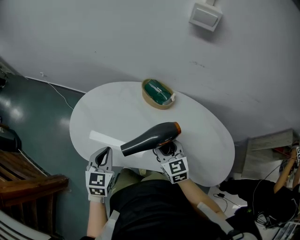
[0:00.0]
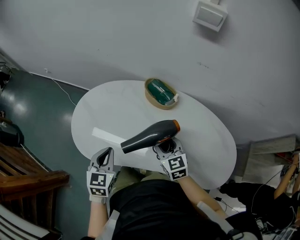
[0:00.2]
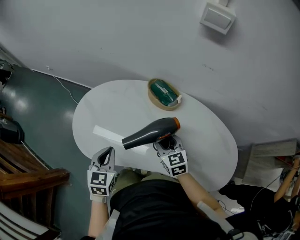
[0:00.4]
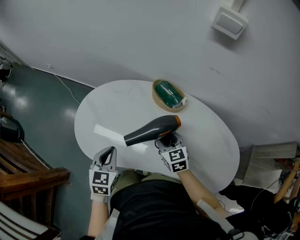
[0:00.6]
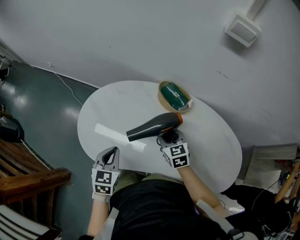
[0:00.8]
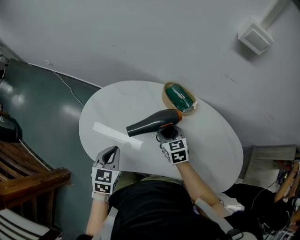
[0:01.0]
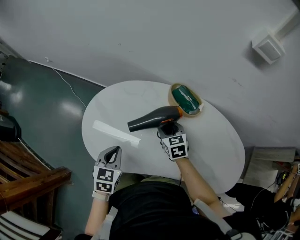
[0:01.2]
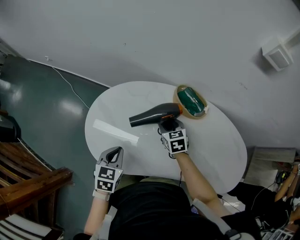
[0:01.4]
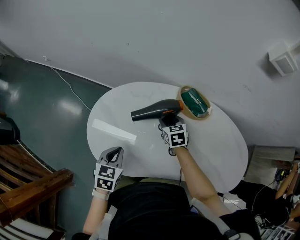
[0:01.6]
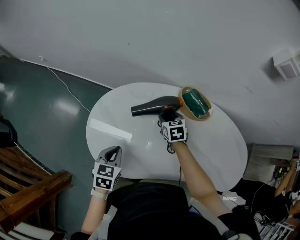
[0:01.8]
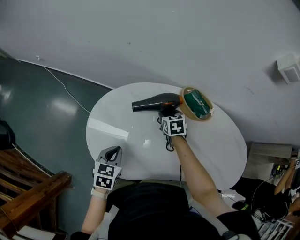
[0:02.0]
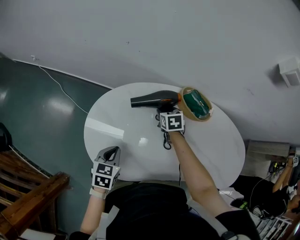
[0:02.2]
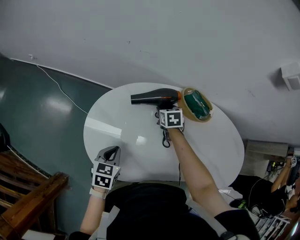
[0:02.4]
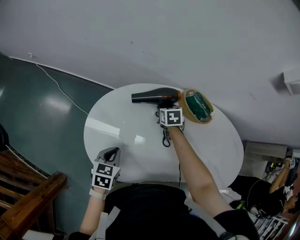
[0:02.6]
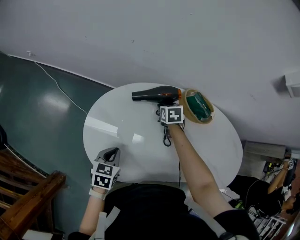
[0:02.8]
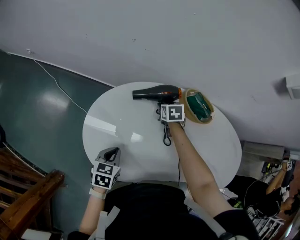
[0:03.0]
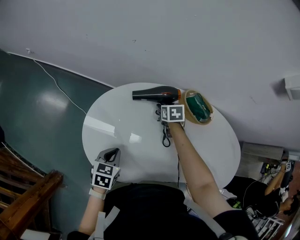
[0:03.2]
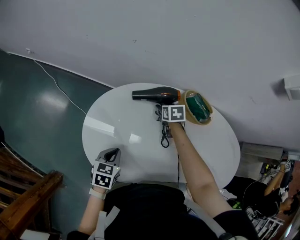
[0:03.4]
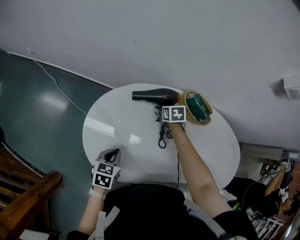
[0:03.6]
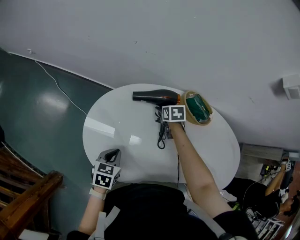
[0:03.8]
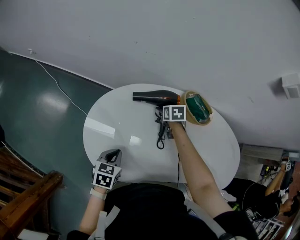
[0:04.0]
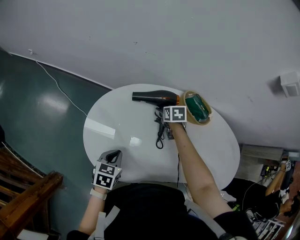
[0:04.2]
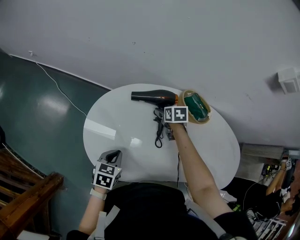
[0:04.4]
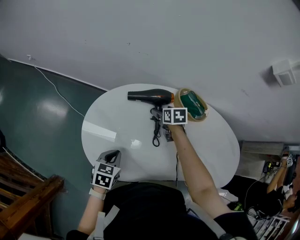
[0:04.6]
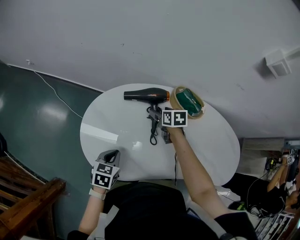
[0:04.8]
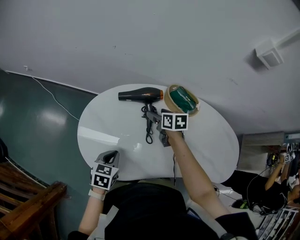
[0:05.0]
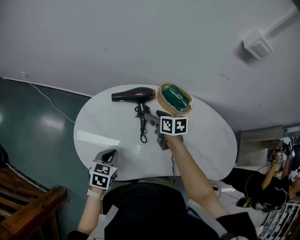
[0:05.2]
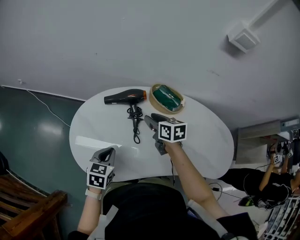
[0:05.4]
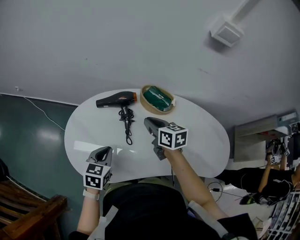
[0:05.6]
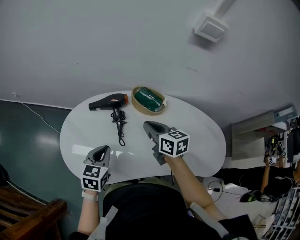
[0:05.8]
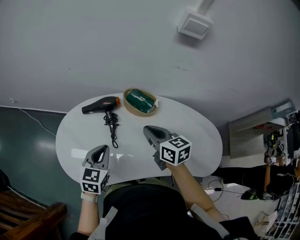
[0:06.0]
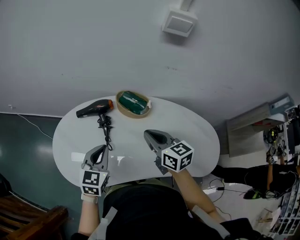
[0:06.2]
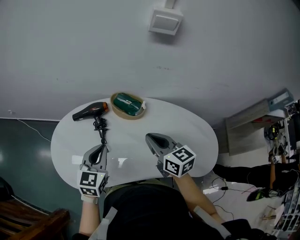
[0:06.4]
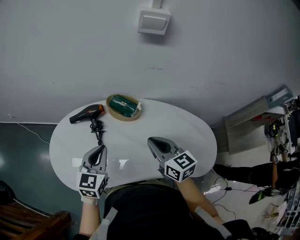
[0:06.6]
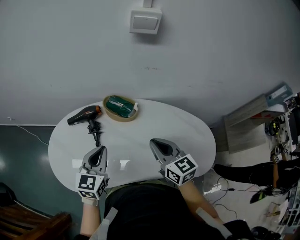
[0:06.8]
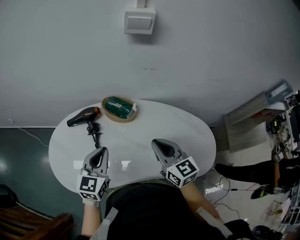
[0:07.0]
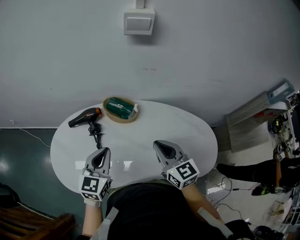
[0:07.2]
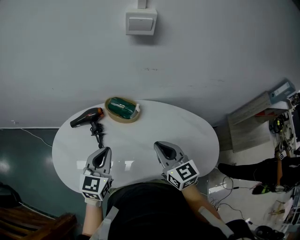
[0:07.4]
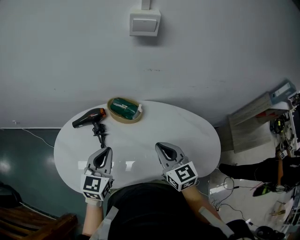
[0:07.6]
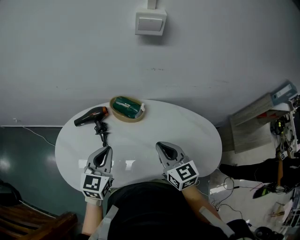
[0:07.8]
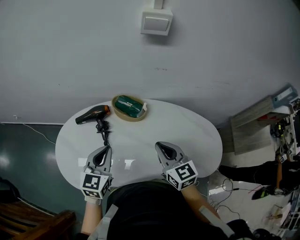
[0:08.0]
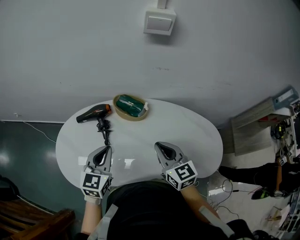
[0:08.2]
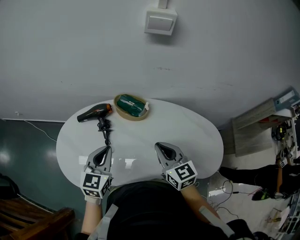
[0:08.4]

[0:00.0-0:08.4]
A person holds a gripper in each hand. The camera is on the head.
0:00.0 to 0:01.4: The right gripper is displaced forward, to the left and downward by roughly 25 cm, and turns by roughly 20 degrees. The left gripper shifts approximately 15 cm to the left, forward and downward.
0:01.4 to 0:02.8: The left gripper is displaced downward and to the left by about 10 cm, while the right gripper moves forward, downward and to the left, approximately 15 cm, and turns by some 20 degrees.
0:02.8 to 0:04.2: The right gripper opens up.
0:04.2 to 0:05.6: The left gripper shifts some 15 cm to the right and upward, while the right gripper travels upward, backward and to the right by approximately 25 cm, angles its fingers upward, by some 30 degrees, and closes its fingers.
0:05.6 to 0:07.0: The left gripper shifts some 20 cm to the right and upward, and swivels about 20 degrees, while the right gripper heads to the right, backward and upward, covering approximately 25 cm, and turns by roughly 30 degrees.
0:07.0 to 0:08.4: The grippers move only a little.

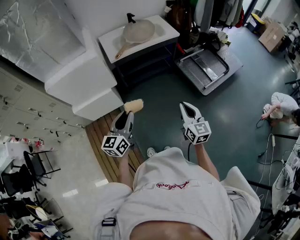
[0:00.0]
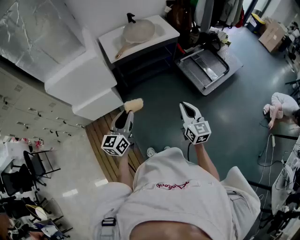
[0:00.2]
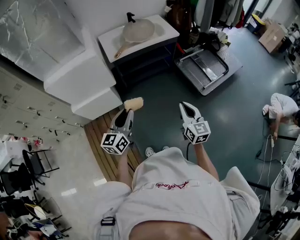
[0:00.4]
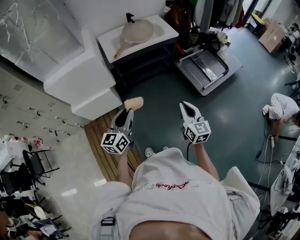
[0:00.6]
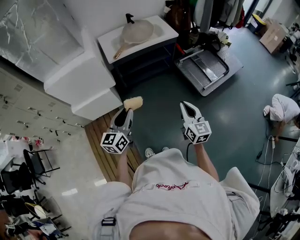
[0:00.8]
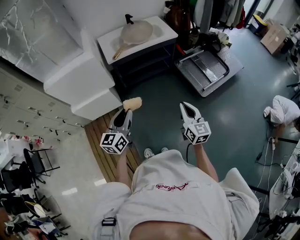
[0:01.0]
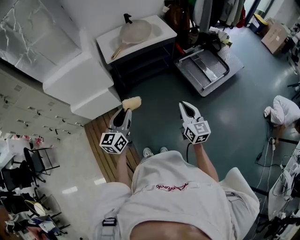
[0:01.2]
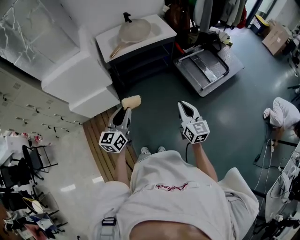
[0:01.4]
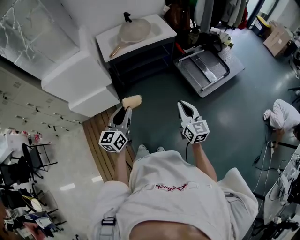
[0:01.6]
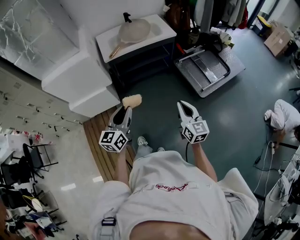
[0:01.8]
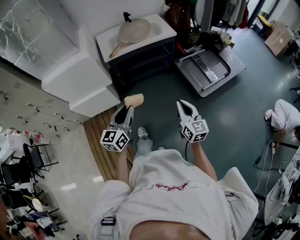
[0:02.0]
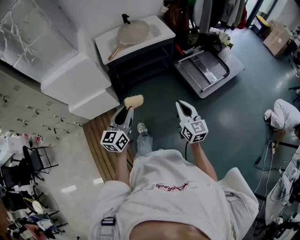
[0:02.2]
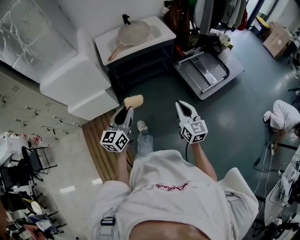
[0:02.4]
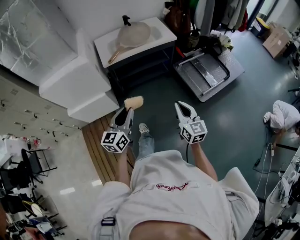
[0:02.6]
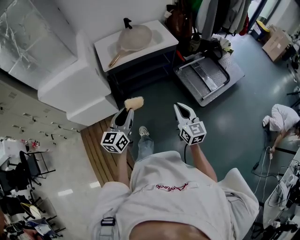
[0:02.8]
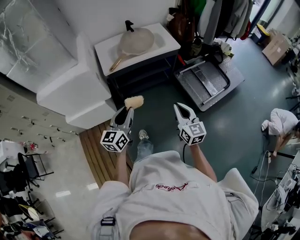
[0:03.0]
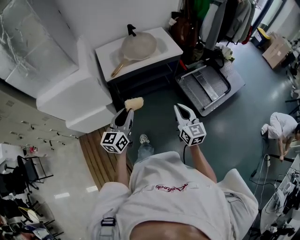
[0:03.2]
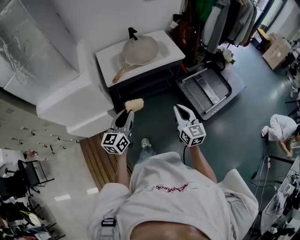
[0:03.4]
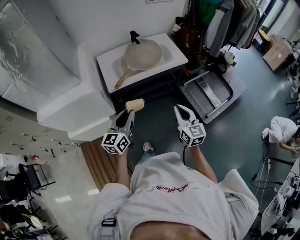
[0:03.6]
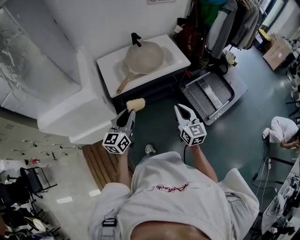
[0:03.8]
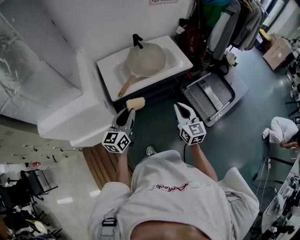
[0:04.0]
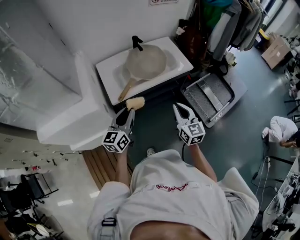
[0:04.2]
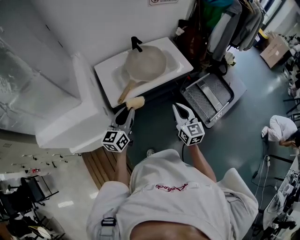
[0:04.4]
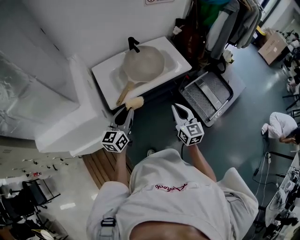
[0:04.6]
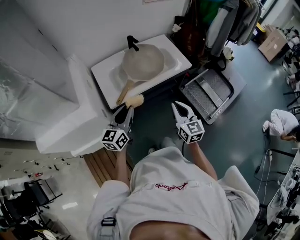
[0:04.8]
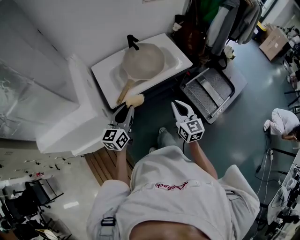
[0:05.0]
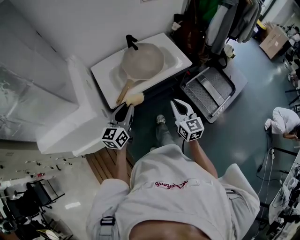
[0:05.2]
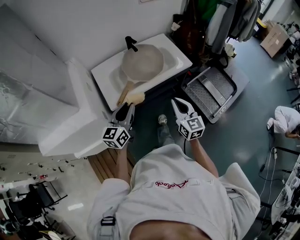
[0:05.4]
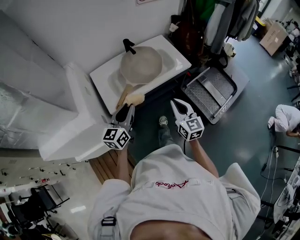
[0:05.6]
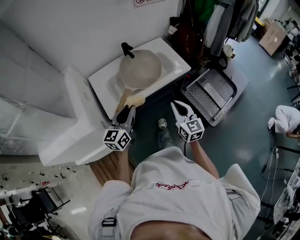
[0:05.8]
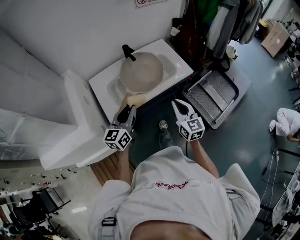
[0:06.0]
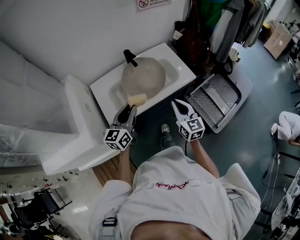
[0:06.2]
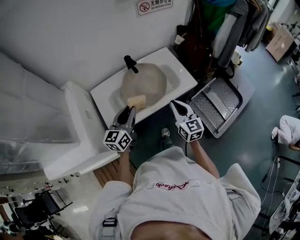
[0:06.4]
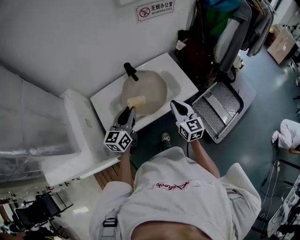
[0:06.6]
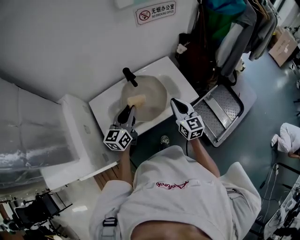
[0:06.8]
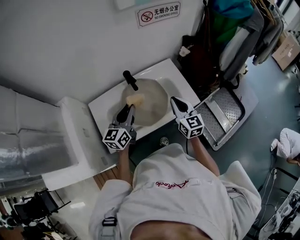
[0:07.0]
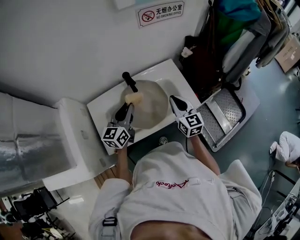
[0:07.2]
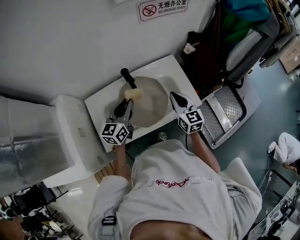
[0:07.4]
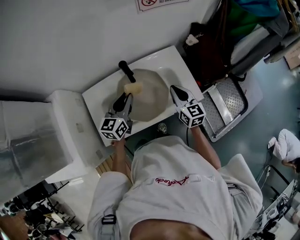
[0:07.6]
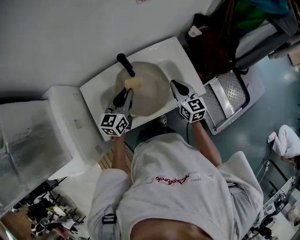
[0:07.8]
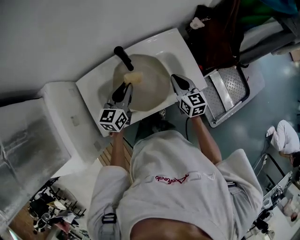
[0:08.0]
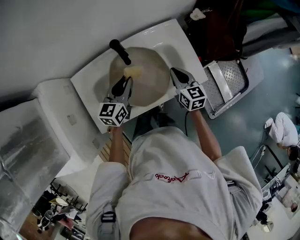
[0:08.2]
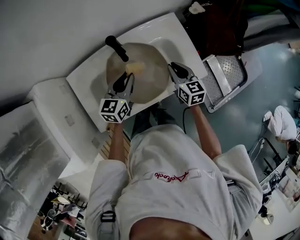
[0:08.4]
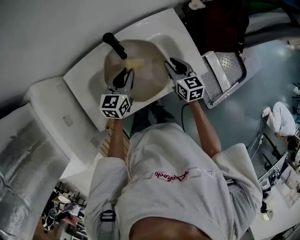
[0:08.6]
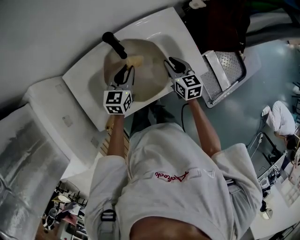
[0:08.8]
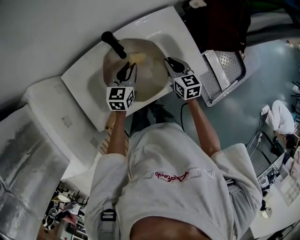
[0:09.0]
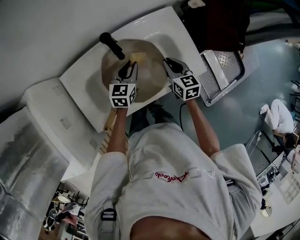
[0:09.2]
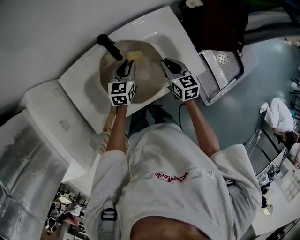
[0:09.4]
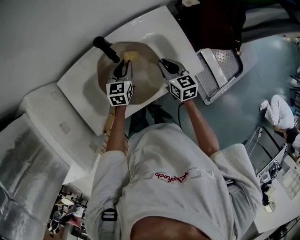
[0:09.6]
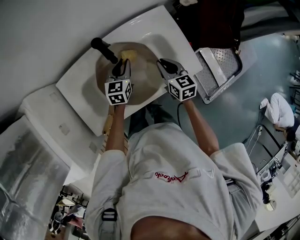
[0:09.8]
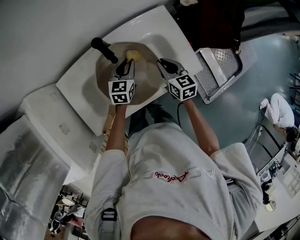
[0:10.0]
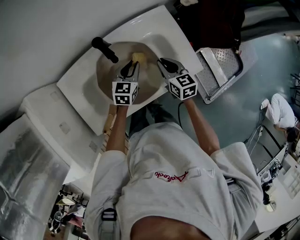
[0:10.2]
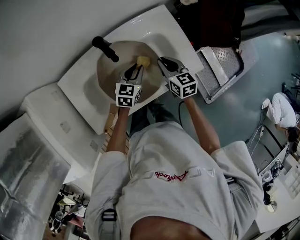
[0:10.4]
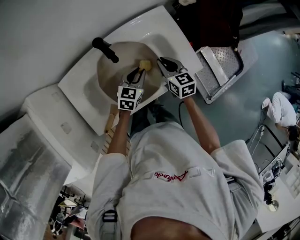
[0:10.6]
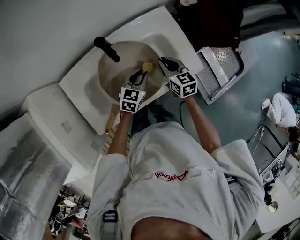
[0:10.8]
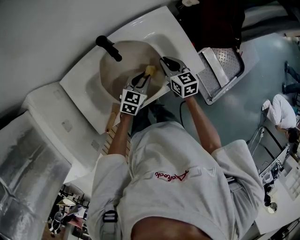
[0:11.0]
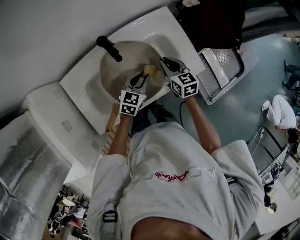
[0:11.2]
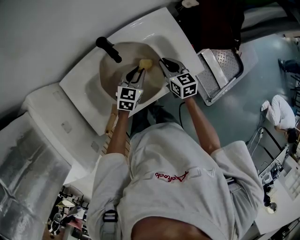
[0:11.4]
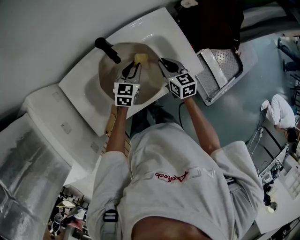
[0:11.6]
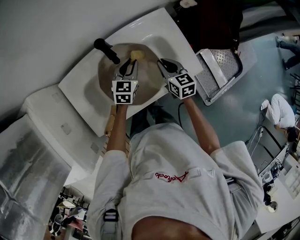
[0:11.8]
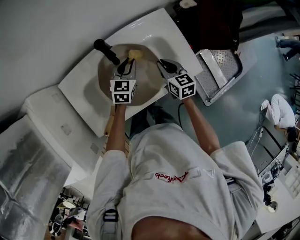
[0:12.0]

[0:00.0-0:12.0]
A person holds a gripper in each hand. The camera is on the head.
0:00.0 to 0:01.6: Both grippers travel together to the right, about 10 cm.
0:01.6 to 0:03.0: The grippers both shift forward by some 15 cm.
0:03.0 to 0:04.4: The right gripper heads forward and to the left, covering some 30 cm, while the left gripper heads forward, covering about 30 cm.
0:04.4 to 0:06.0: Both grippers move forward, about 10 cm.
0:06.0 to 0:07.6: Both grippers travel together forward, approximately 30 cm.
0:07.6 to 0:09.0: The two grippers go some 15 cm downward.
0:09.0 to 0:10.4: The left gripper travels to the right by roughly 5 cm.
0:10.4 to 0:12.0: The left gripper ends up approximately 5 cm from where it was.

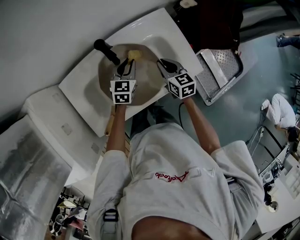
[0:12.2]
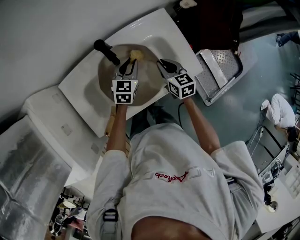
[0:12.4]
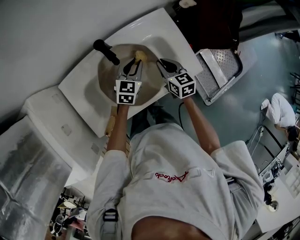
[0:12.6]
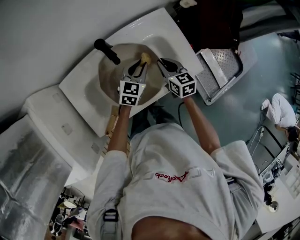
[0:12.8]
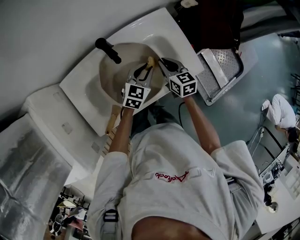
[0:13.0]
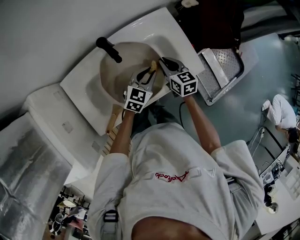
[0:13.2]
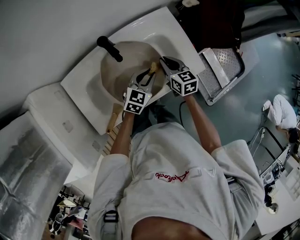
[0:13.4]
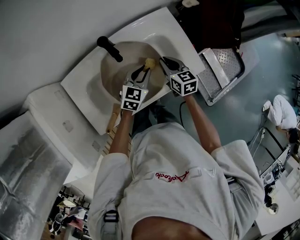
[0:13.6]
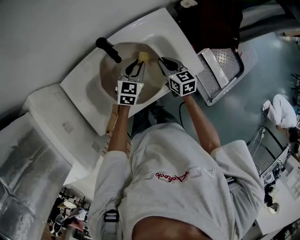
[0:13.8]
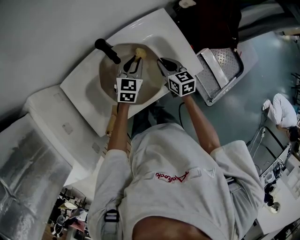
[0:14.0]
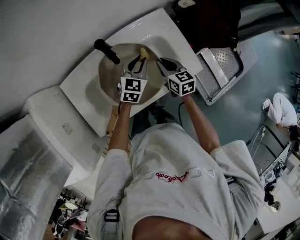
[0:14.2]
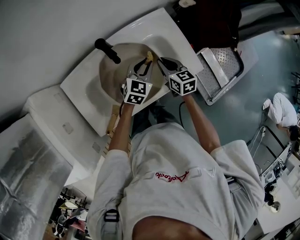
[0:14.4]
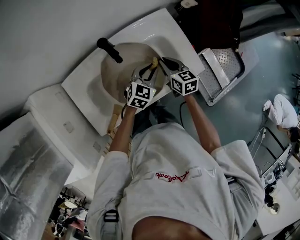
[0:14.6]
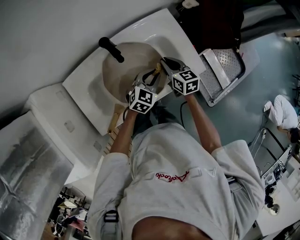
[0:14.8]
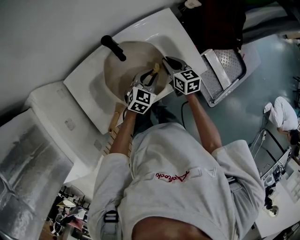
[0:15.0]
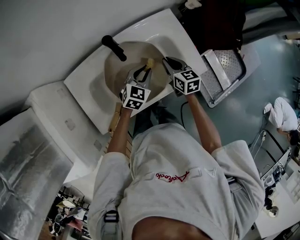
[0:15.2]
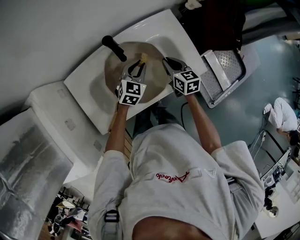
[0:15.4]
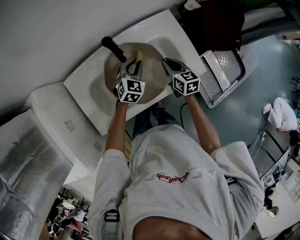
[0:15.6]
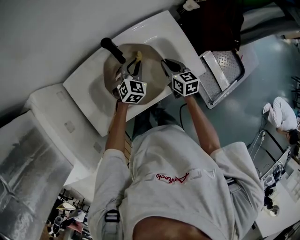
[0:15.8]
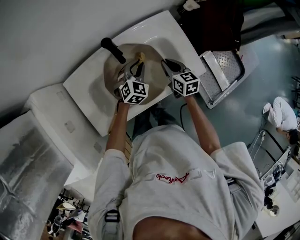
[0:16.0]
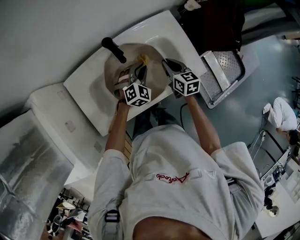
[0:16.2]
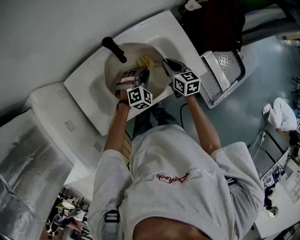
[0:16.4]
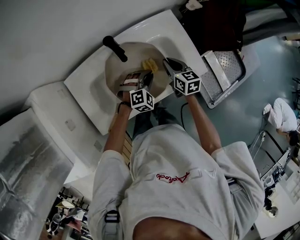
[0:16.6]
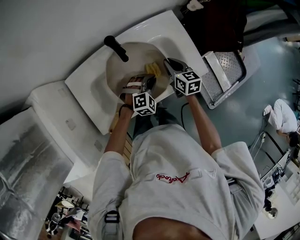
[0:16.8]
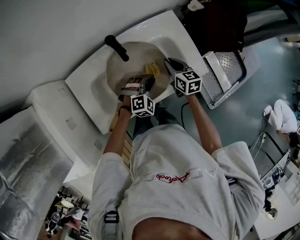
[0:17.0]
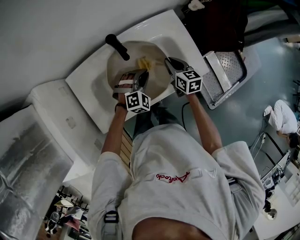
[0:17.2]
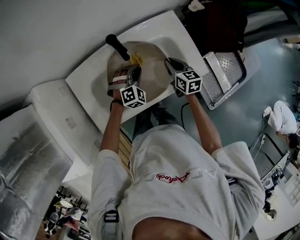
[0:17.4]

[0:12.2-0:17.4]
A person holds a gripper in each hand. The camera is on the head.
0:14.0 to 0:15.6: The left gripper reaches approximately 5 cm to the right, then returns.
0:15.6 to 0:17.4: The left gripper reaches approximately 10 cm backward, then returns, and turns by about 40 degrees.
